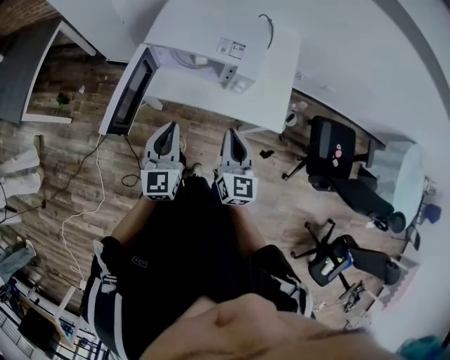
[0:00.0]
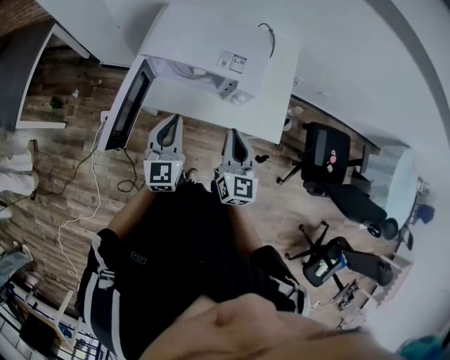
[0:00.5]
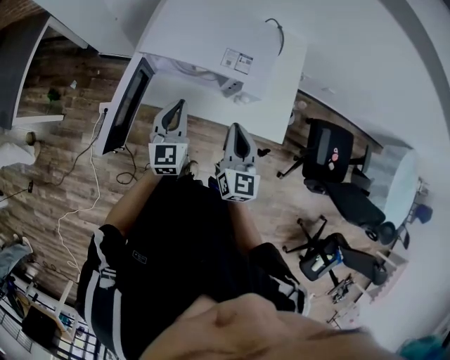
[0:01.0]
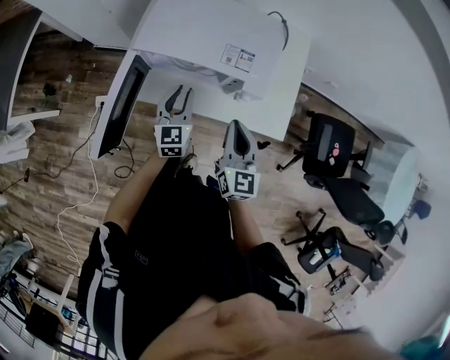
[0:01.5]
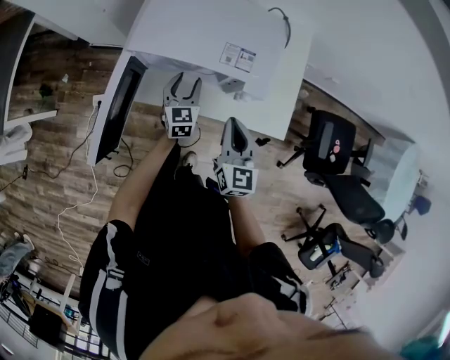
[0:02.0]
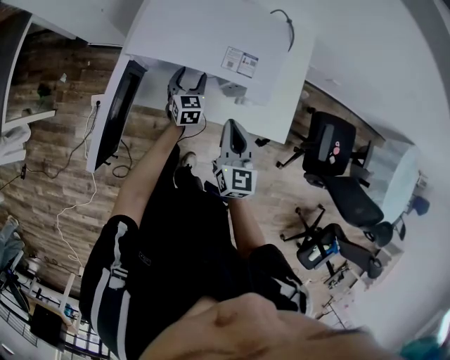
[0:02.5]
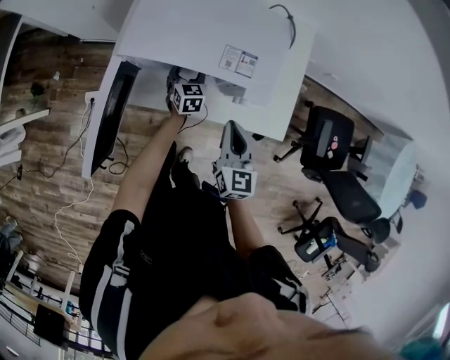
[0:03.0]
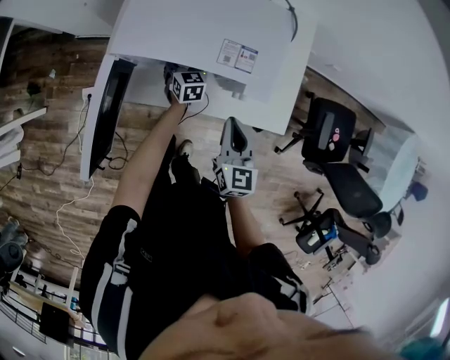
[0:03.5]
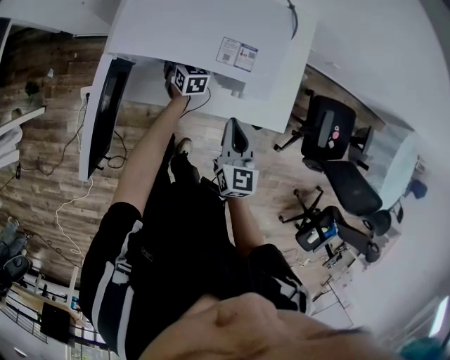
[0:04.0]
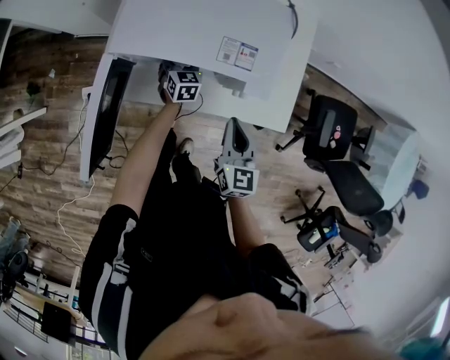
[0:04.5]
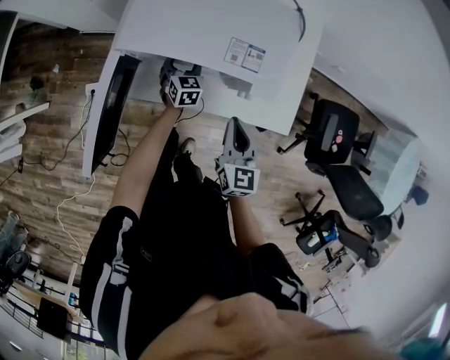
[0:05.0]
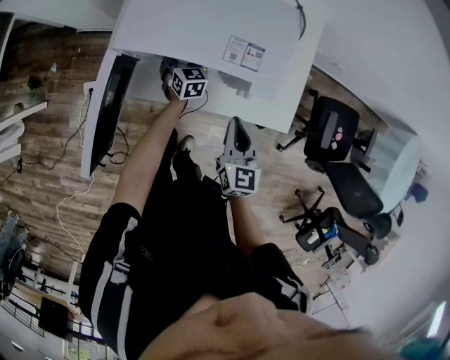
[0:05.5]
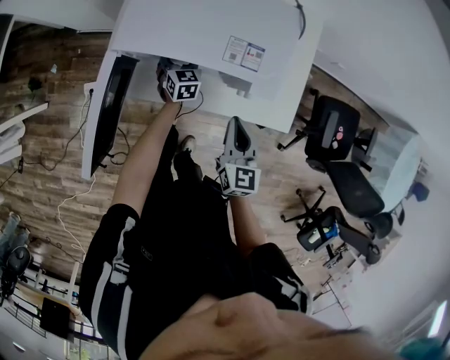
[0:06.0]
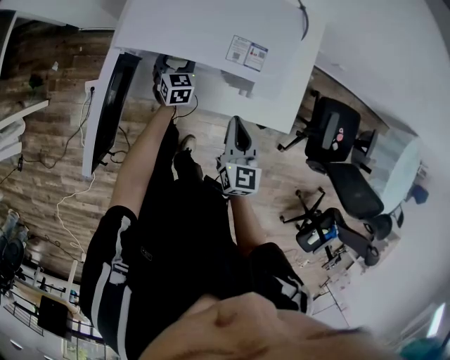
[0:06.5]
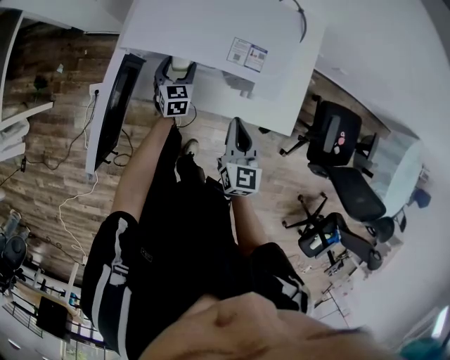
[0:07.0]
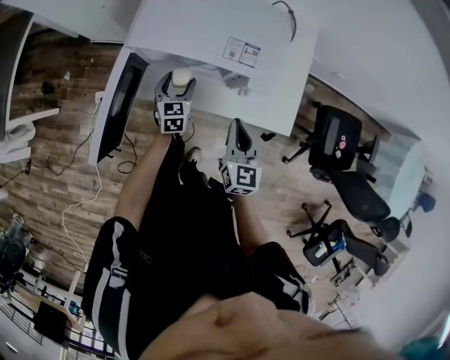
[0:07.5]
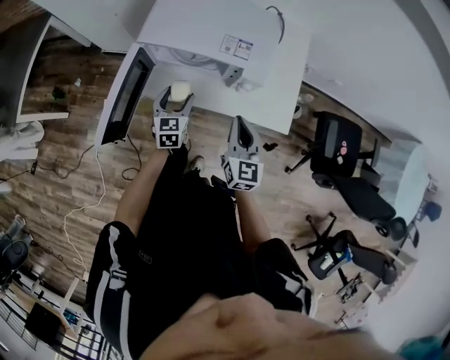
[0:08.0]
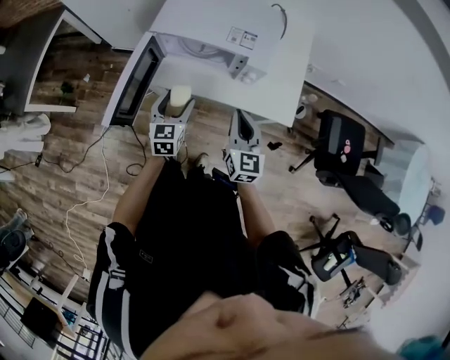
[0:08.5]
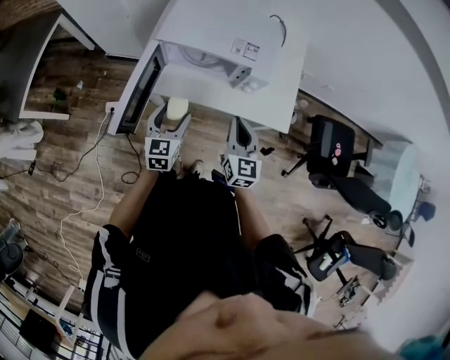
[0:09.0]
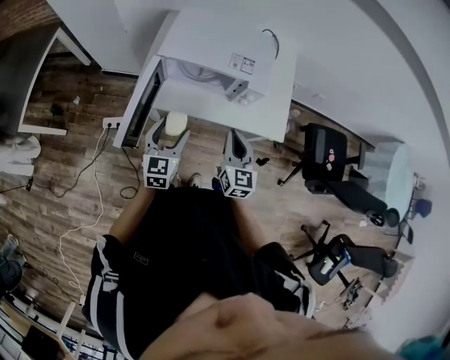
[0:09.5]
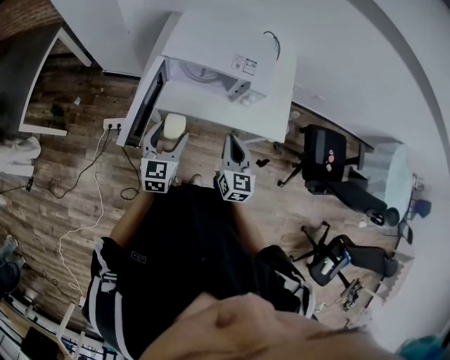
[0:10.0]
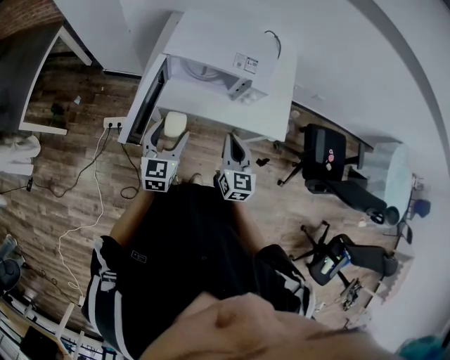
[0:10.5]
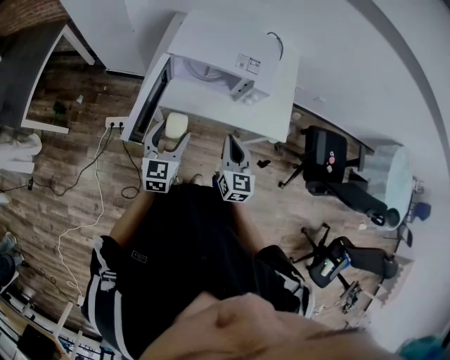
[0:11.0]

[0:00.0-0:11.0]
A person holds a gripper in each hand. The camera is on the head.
0:00.0 to 0:02.0: The left gripper moves forward and downward, approximately 30 cm, and opens its fingers, while the right gripper is displaced forward and downward by roughly 15 cm.
0:02.0 to 0:03.5: The left gripper heads downward and forward, covering about 15 cm.
0:03.5 to 0:05.5: The grippers make only small movements.
0:05.5 to 0:07.5: The left gripper heads backward and upward, covering about 10 cm.
0:07.5 to 0:09.0: The left gripper is displaced backward and upward by roughly 20 cm. The right gripper shifts roughly 10 cm backward and upward.
0:09.0 to 0:11.0: The right gripper ends up roughly 5 cm from where it was; the left gripper goes some 5 cm upward.

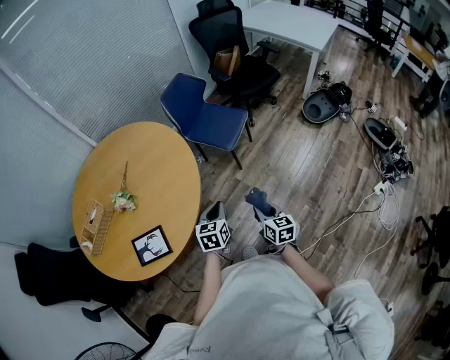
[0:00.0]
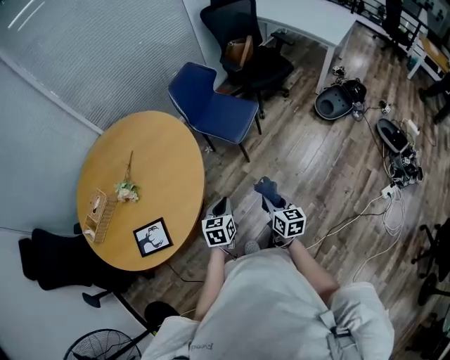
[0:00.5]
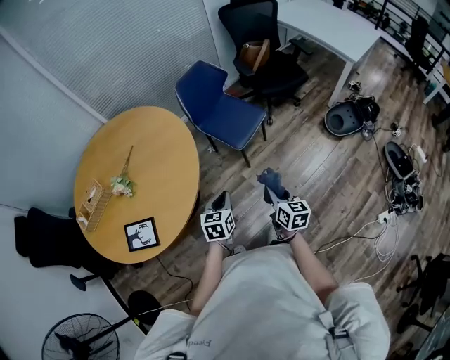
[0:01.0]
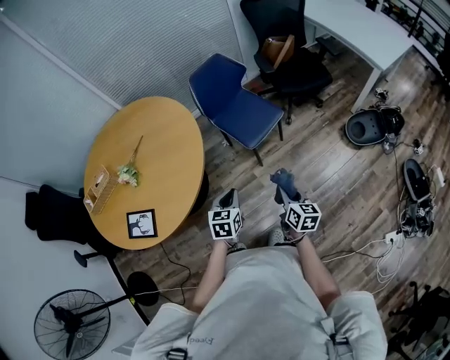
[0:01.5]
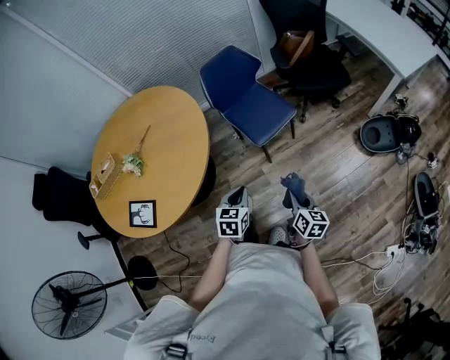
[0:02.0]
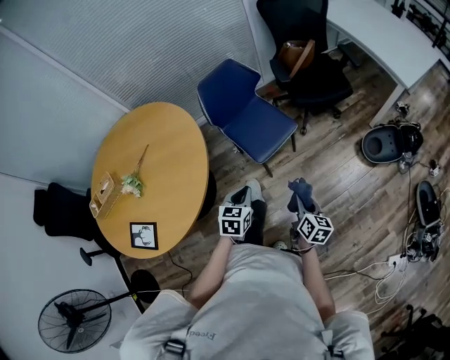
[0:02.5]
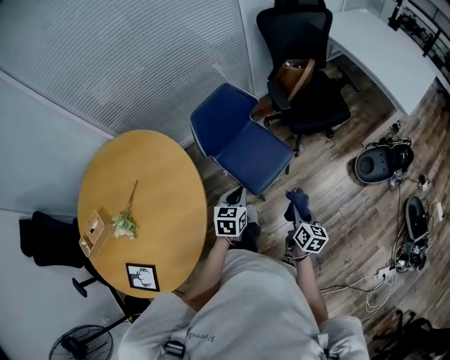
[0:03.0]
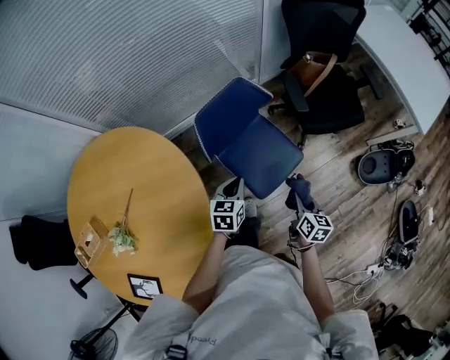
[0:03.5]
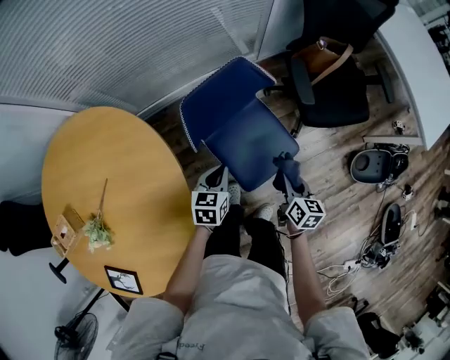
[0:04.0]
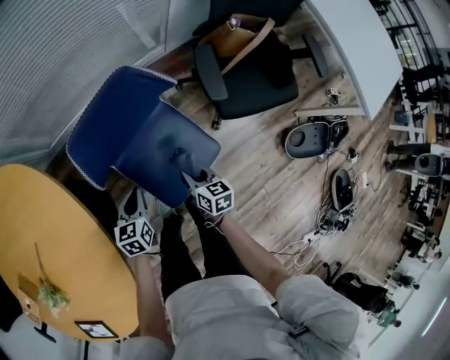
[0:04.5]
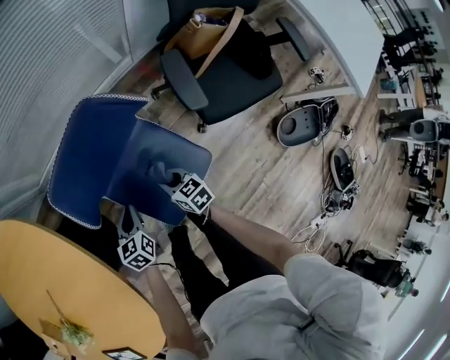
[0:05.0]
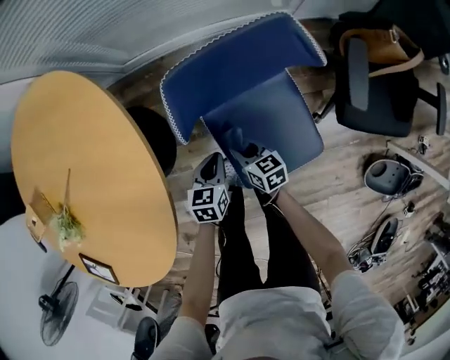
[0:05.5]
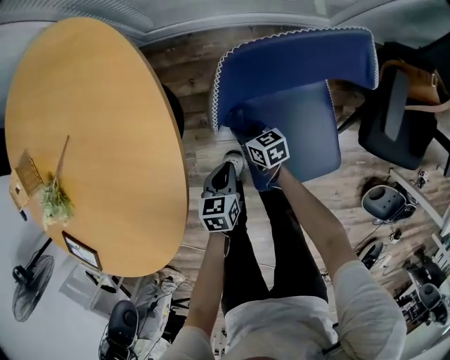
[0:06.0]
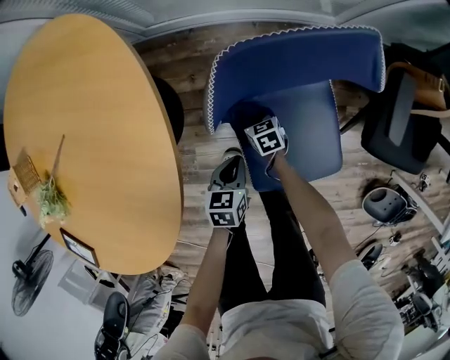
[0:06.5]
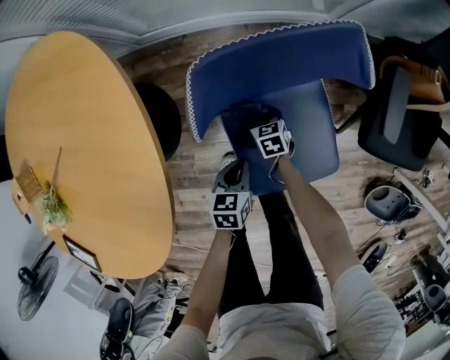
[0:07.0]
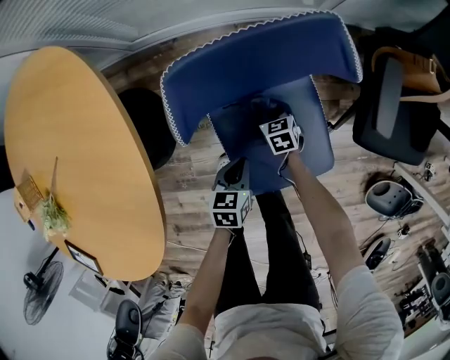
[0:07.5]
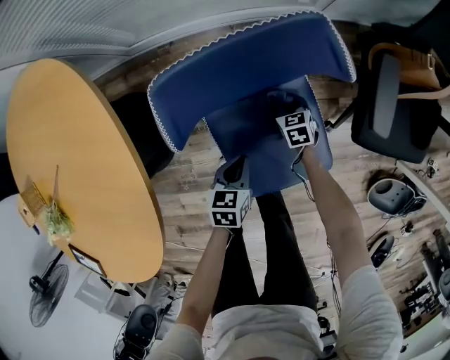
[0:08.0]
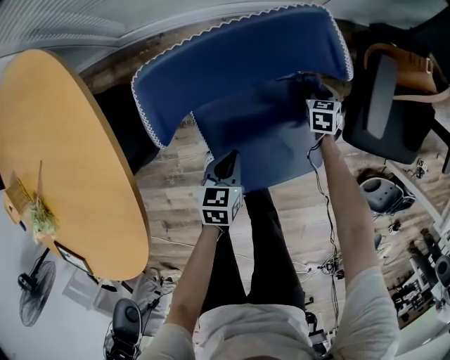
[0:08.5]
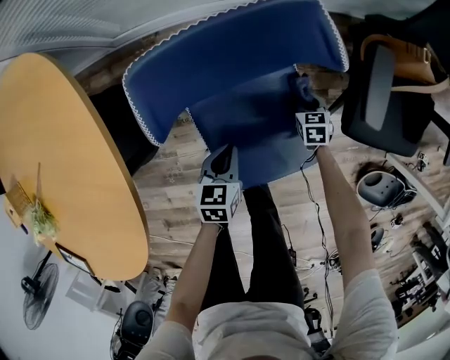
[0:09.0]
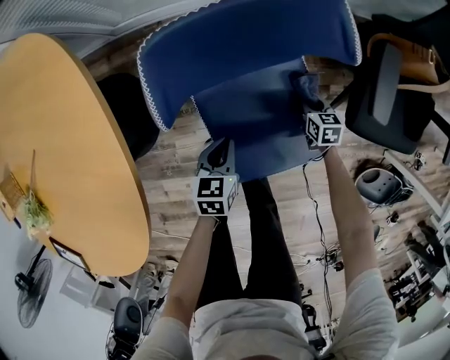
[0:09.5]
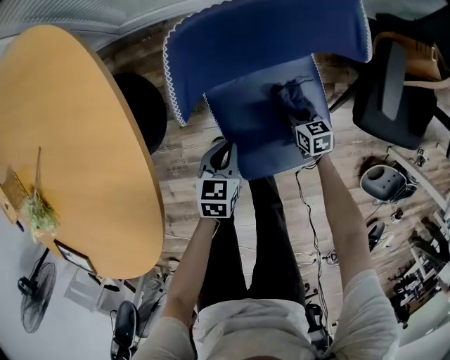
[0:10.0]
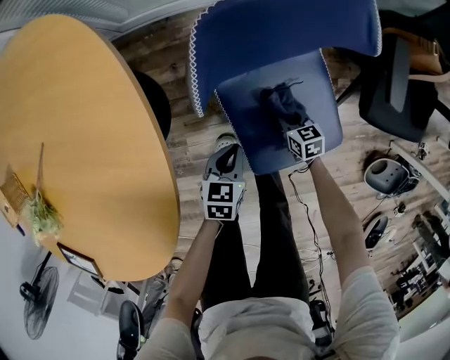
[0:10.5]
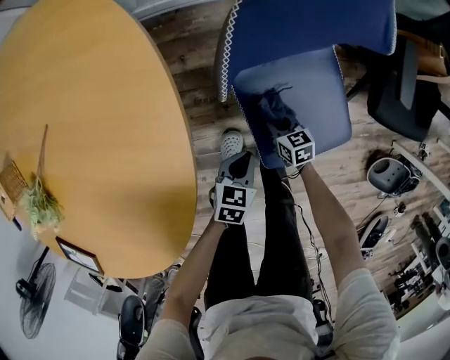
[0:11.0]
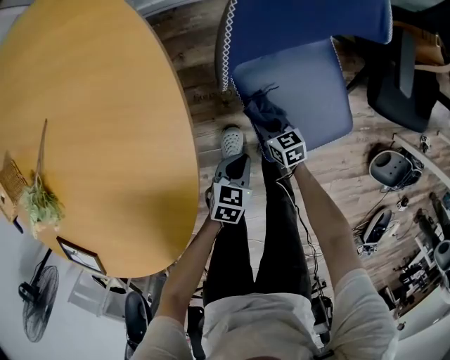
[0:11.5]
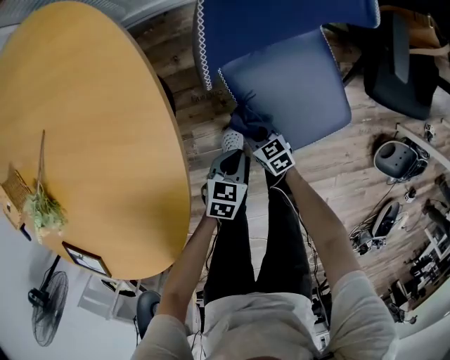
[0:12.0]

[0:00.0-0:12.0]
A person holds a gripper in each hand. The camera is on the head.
0:00.0 to 0:02.0: The two grippers go approximately 25 cm to the right and forward.
0:02.0 to 0:04.0: The pair of grippers is taken forward, roughly 50 cm.
0:04.0 to 0:06.0: The right gripper moves some 40 cm, and rotates about 60 degrees. The left gripper heads downward, covering roughly 25 cm, and turns by about 40 degrees.
0:06.0 to 0:08.0: The right gripper ends up some 25 cm from where it was, and turns by roughly 30 degrees; the left gripper ends up about 15 cm from where it was.
0:08.0 to 0:10.0: The left gripper ends up about 5 cm from where it was.
0:10.0 to 0:12.0: The left gripper heads backward and to the left, covering roughly 10 cm; the right gripper moves to the left and backward, some 25 cm.

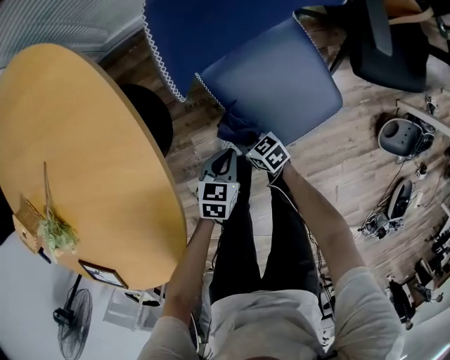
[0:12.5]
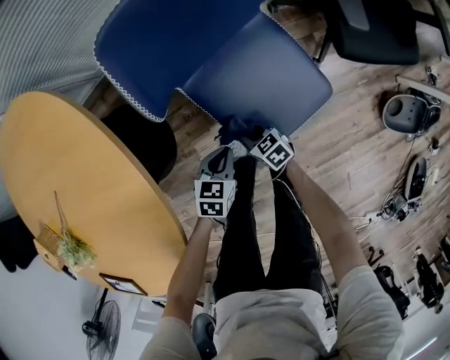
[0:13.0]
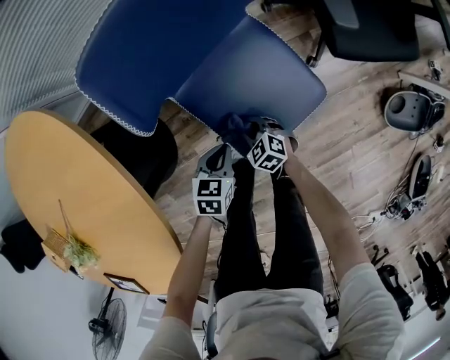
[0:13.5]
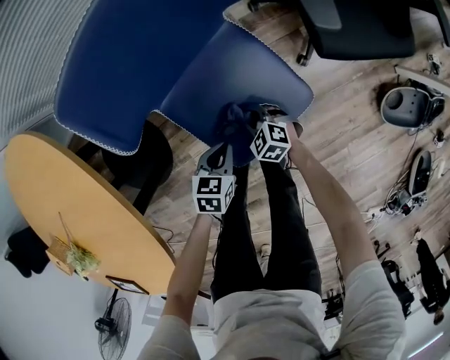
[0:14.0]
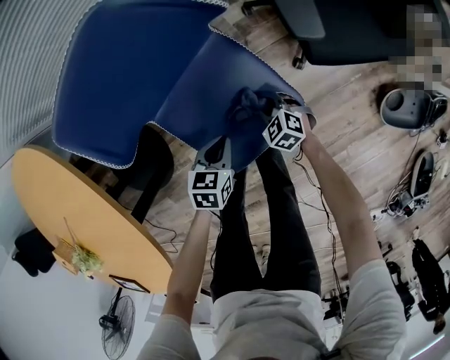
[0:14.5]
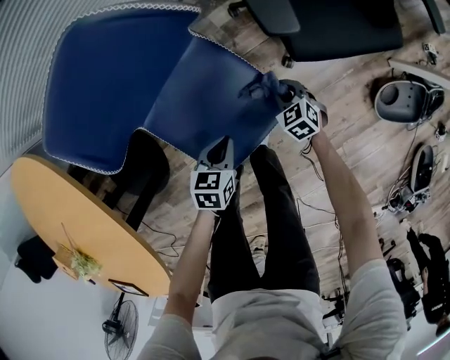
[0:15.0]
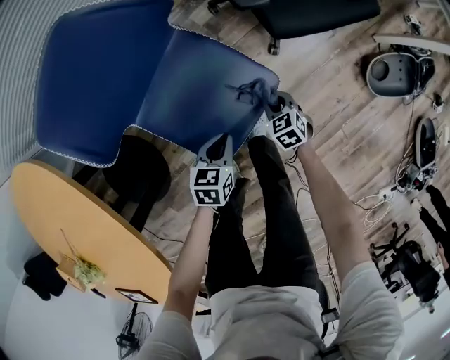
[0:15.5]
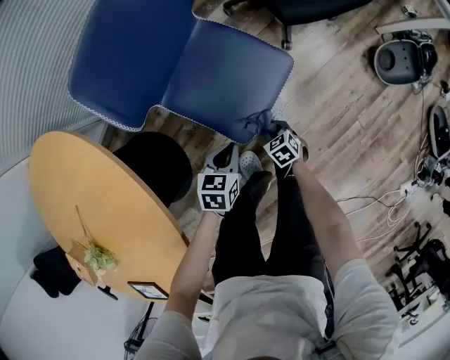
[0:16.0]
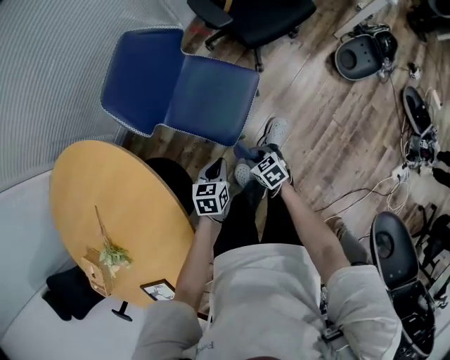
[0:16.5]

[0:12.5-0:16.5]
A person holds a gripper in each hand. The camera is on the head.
0:12.5 to 0:14.5: The right gripper is displaced to the right by roughly 30 cm, and swivels roughly 40 degrees. Meanwhile the left gripper travels to the right and forward by approximately 20 cm.
0:14.5 to 0:16.5: Both grippers move backward and upward, approximately 30 cm. The right gripper rolls clockwise, seen from behind, by some 50 degrees.
